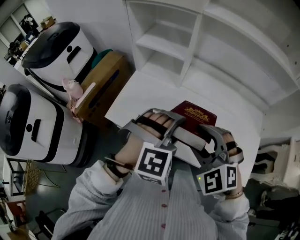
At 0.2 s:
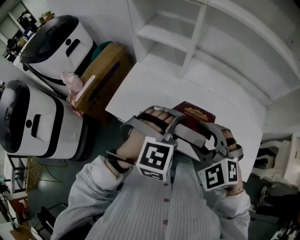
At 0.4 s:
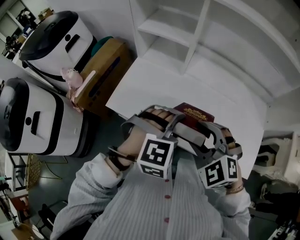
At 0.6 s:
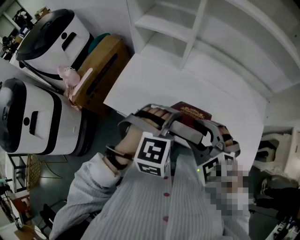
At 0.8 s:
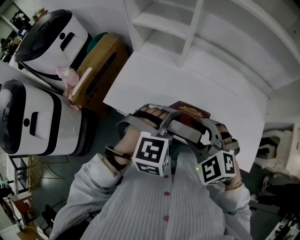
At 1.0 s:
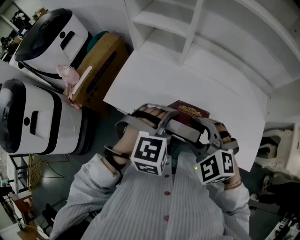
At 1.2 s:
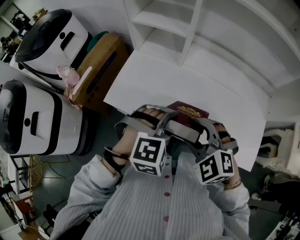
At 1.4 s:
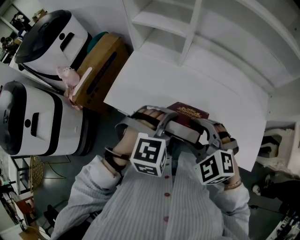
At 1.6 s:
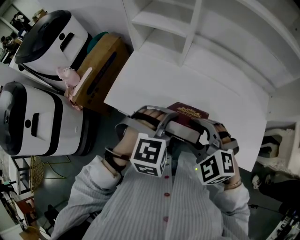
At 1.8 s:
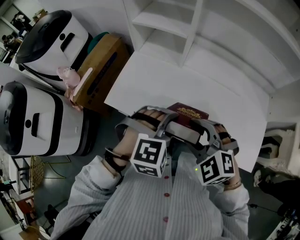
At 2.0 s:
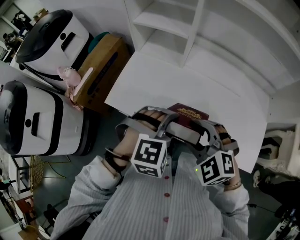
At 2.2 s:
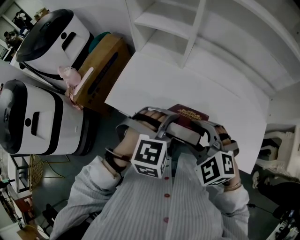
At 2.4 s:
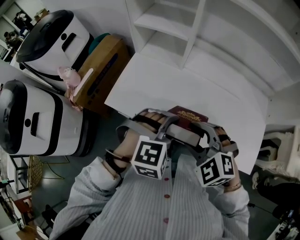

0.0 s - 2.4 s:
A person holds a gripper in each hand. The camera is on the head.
0.0 s - 1.2 s: The two grippers go approximately 5 cm downward.
1.2 s - 2.4 s: Both grippers stay about where they are.

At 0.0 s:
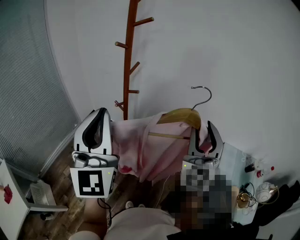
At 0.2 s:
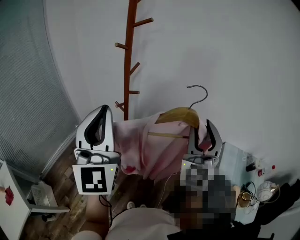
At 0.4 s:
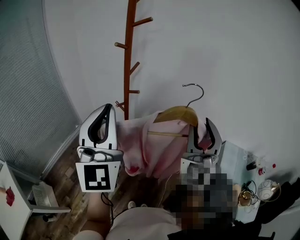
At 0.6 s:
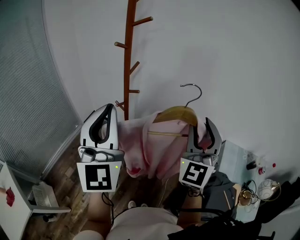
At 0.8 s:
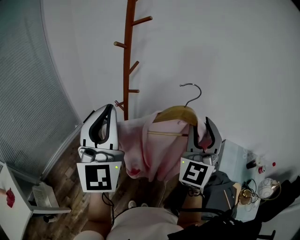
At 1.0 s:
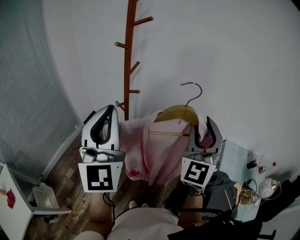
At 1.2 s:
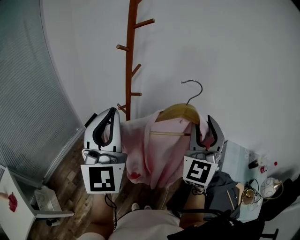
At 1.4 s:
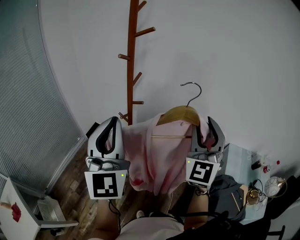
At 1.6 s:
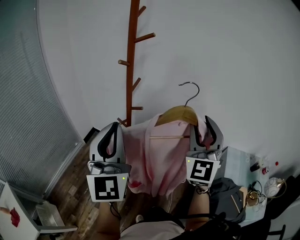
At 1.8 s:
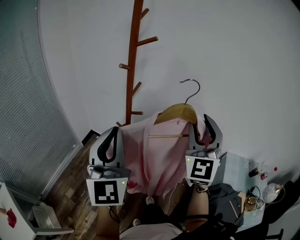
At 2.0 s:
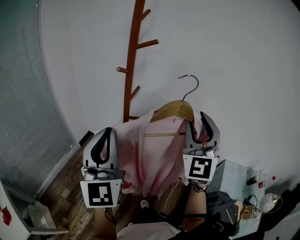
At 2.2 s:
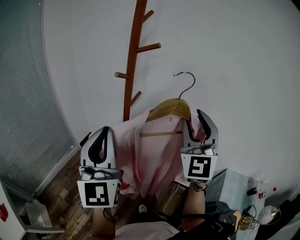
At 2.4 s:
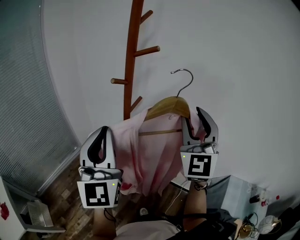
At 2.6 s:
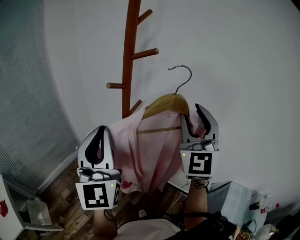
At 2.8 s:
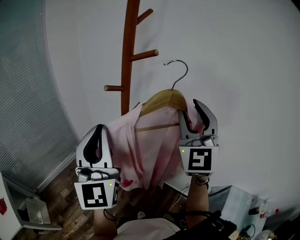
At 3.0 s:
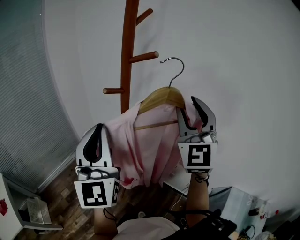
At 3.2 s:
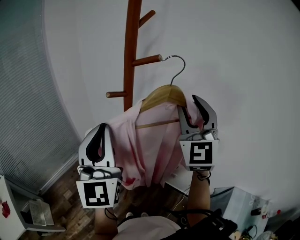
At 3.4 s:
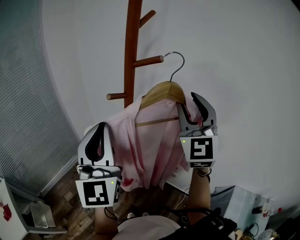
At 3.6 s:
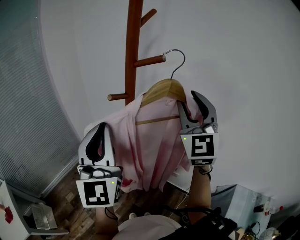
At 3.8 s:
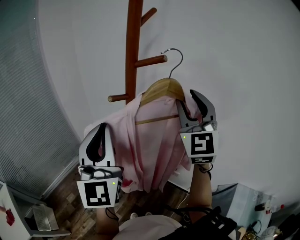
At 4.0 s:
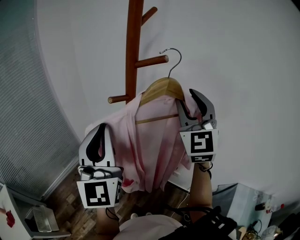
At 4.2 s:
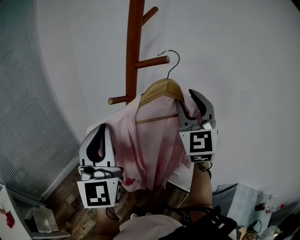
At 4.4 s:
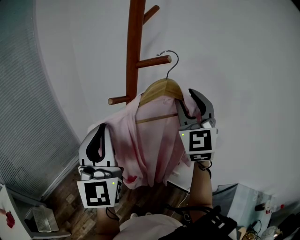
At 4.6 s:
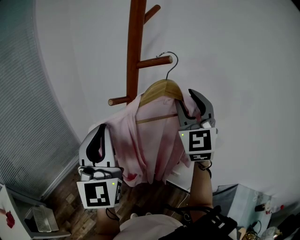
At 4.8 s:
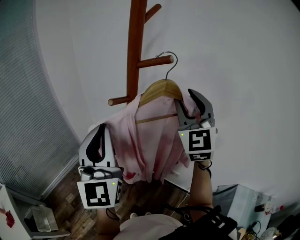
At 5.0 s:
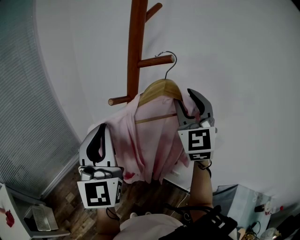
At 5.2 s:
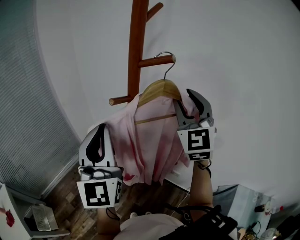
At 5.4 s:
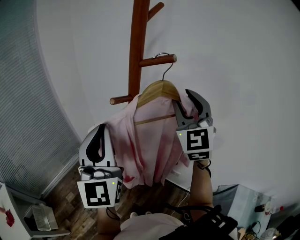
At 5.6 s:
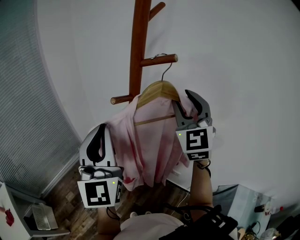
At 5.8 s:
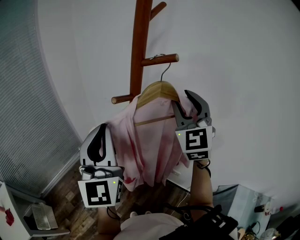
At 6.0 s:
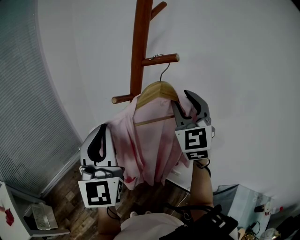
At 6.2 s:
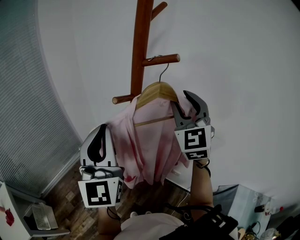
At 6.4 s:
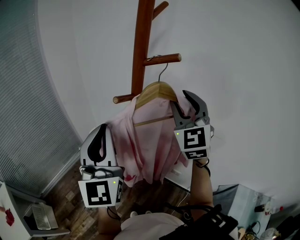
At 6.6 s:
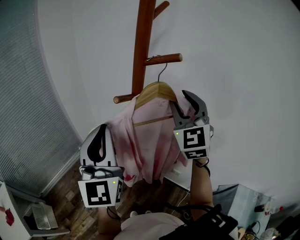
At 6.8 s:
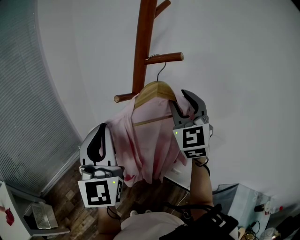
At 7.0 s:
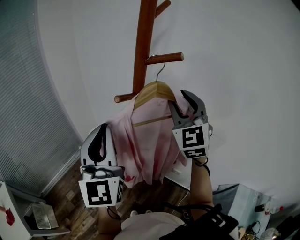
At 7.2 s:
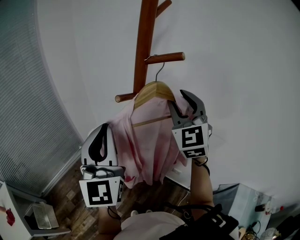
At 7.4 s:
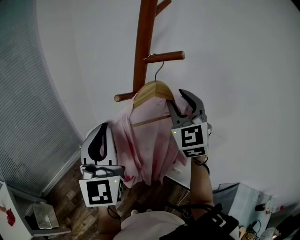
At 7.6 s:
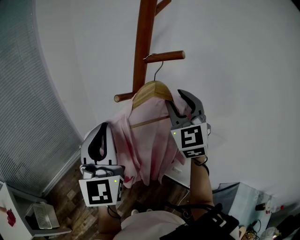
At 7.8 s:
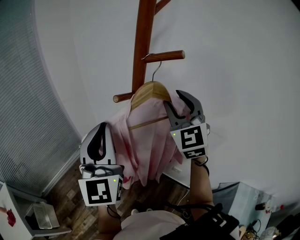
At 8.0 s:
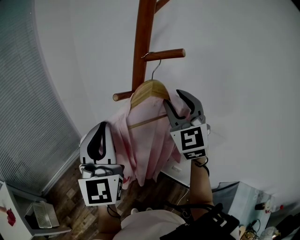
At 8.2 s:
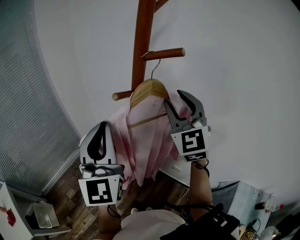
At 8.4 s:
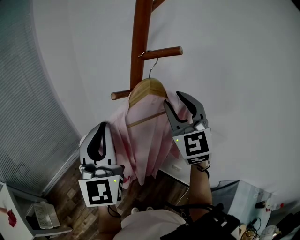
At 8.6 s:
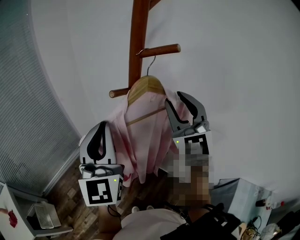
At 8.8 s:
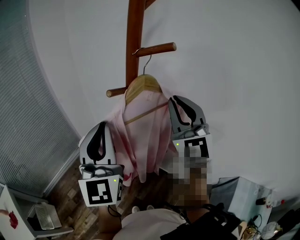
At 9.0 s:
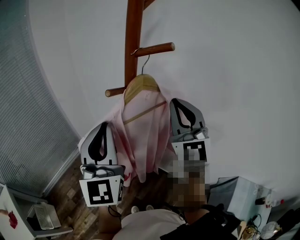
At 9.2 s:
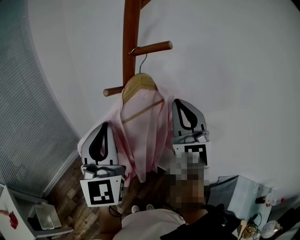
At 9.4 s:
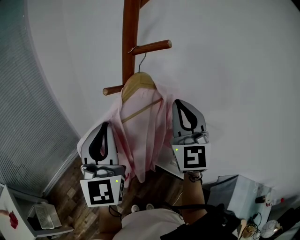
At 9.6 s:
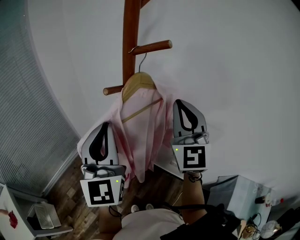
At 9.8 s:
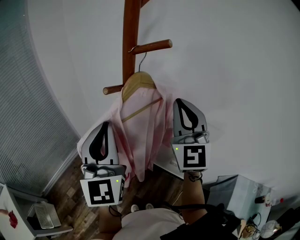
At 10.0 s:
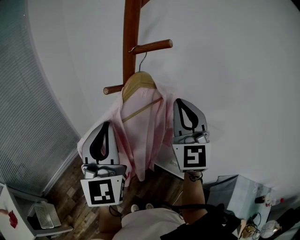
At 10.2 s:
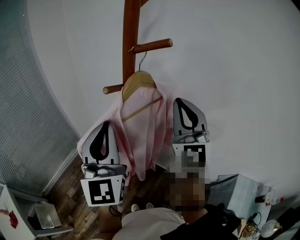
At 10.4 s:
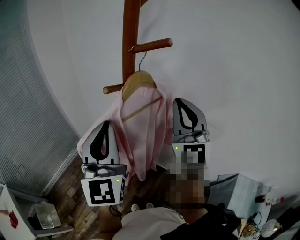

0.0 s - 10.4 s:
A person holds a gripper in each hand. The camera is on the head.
0.0 s - 1.4 s: The grippers stay close to where they were, moving slightly.
1.4 s - 3.0 s: The left gripper travels forward by roughly 15 cm. The right gripper is displaced forward by about 20 cm, and turns by some 20 degrees.
3.0 s - 4.4 s: The right gripper goes roughly 5 cm forward.
4.4 s - 6.0 s: The grippers stay close to where they were, moving slightly.
6.0 s - 7.4 s: The grippers make only small movements.
7.4 s - 9.0 s: The right gripper moves backward, some 5 cm, and closes its fingers.
9.0 s - 10.4 s: There are only small adjustments of the grippers.

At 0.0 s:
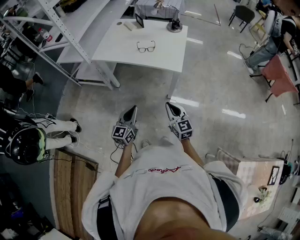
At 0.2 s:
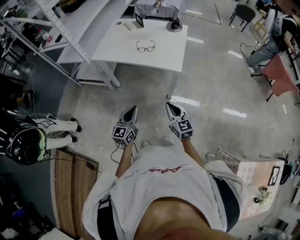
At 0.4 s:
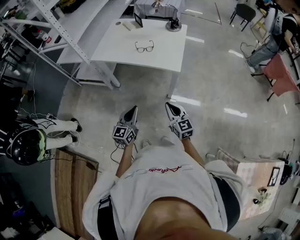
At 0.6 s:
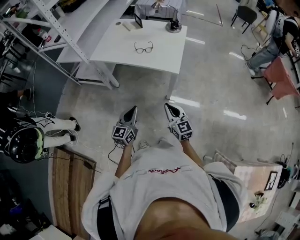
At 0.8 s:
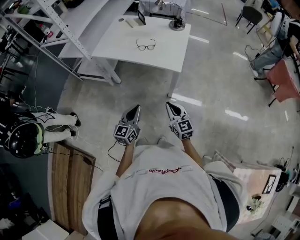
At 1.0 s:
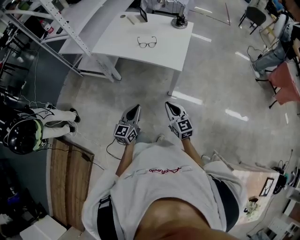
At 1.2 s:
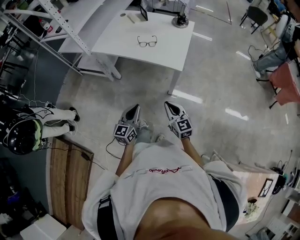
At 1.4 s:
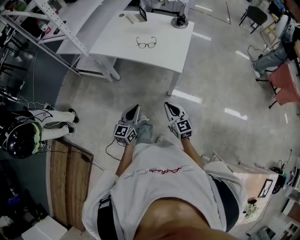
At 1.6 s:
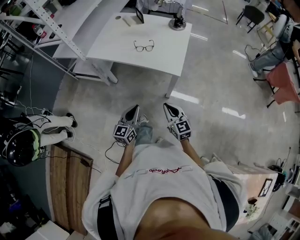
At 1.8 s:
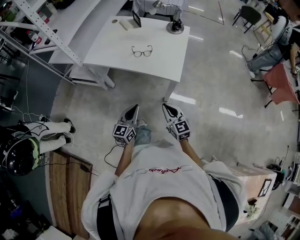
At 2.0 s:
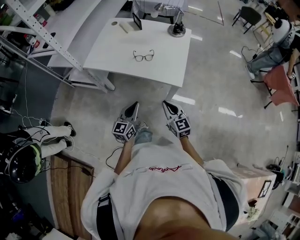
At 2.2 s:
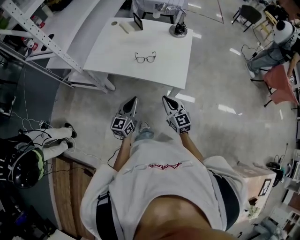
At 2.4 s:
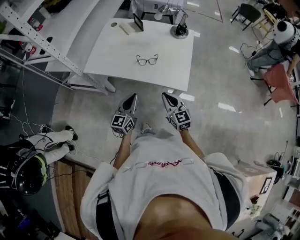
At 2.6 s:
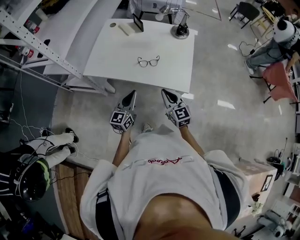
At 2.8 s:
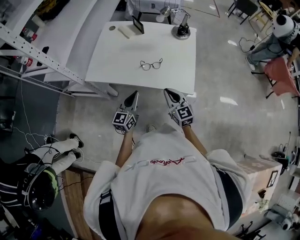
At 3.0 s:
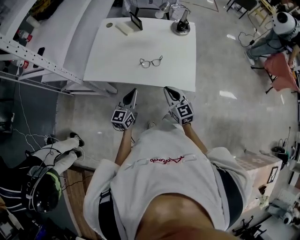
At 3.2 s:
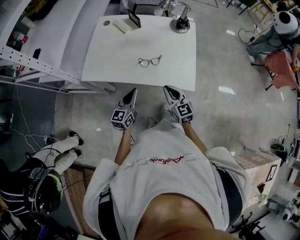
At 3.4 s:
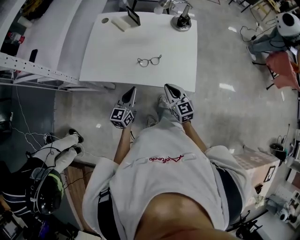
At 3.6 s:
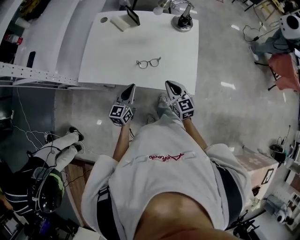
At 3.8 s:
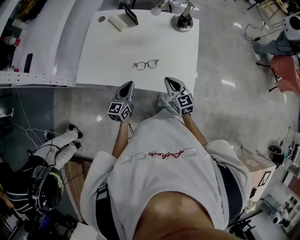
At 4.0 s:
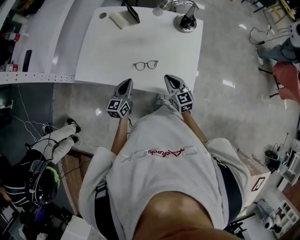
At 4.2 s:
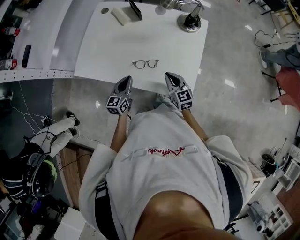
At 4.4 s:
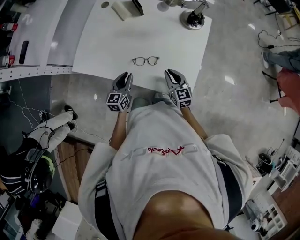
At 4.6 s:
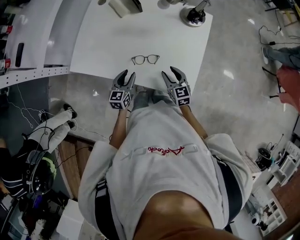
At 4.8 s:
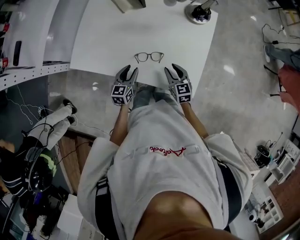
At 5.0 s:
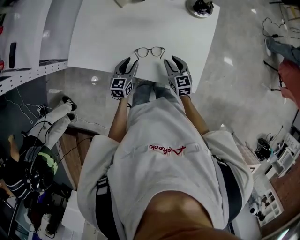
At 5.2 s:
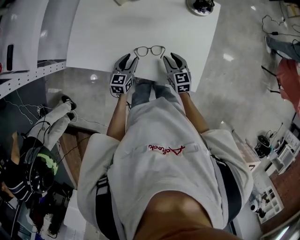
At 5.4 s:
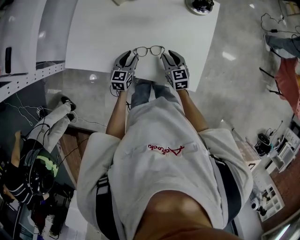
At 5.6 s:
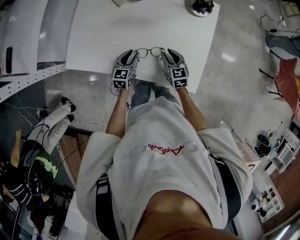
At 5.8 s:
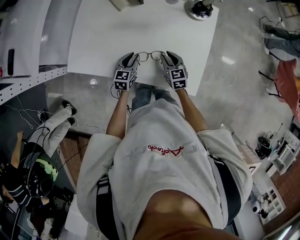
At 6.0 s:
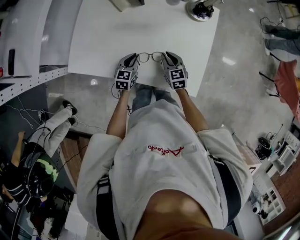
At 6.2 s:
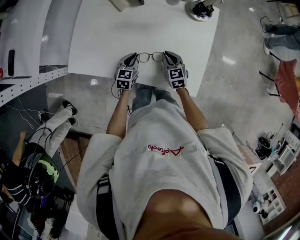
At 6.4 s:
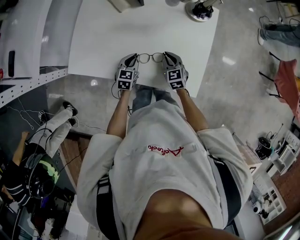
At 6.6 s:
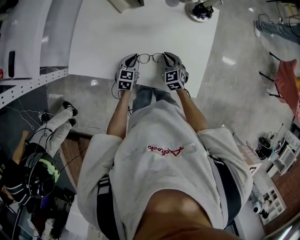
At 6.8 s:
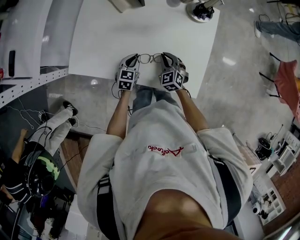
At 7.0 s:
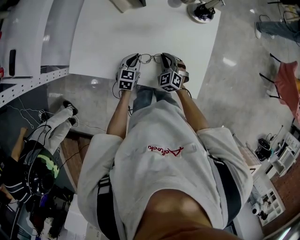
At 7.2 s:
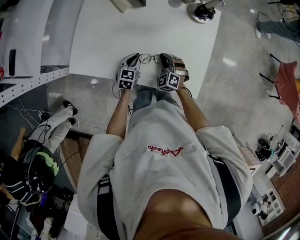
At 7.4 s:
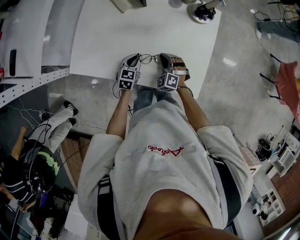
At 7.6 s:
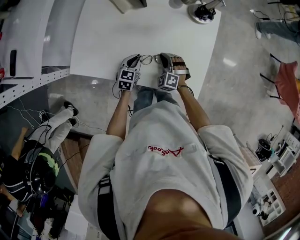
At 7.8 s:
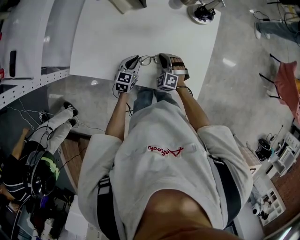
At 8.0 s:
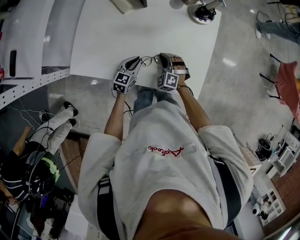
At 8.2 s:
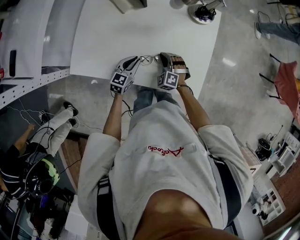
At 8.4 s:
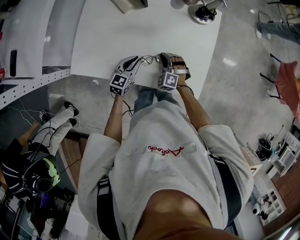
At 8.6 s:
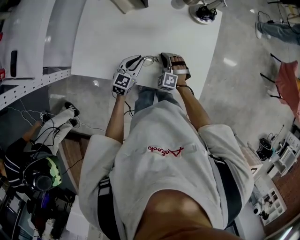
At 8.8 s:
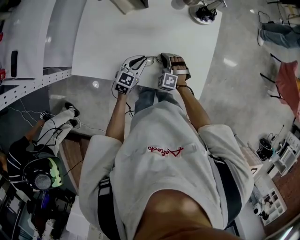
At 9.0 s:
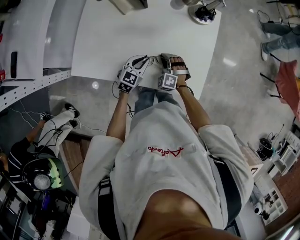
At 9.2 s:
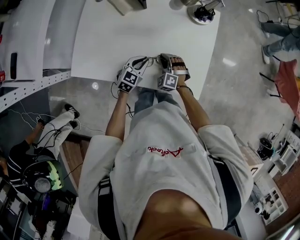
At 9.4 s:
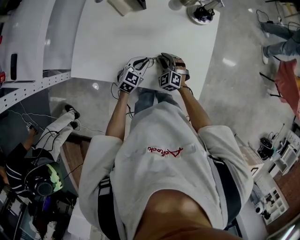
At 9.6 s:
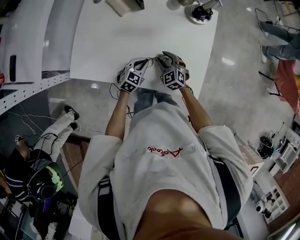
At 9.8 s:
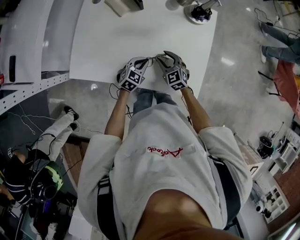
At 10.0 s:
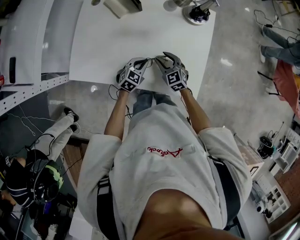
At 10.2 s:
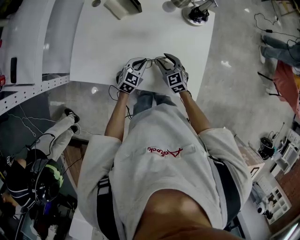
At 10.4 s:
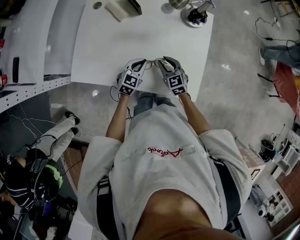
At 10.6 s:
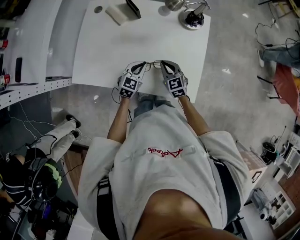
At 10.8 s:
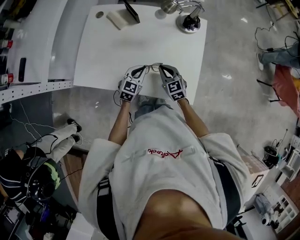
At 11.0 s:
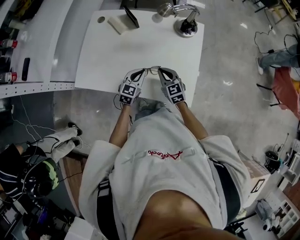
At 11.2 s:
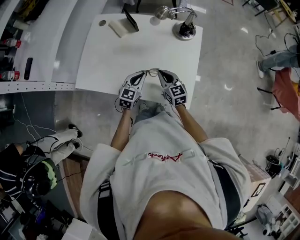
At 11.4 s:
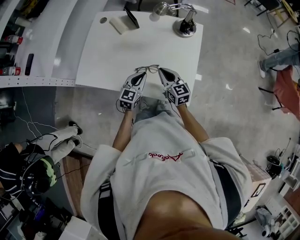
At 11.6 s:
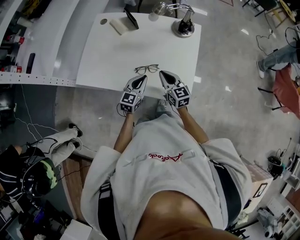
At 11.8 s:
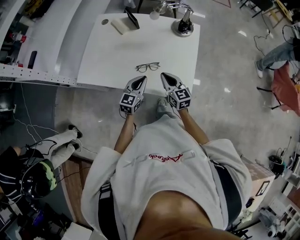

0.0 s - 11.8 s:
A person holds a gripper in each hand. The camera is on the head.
0.0 s - 1.4 s: The left gripper changes place by some 5 cm. Meanwhile the right gripper ends up some 5 cm from where it was.
1.4 s - 3.0 s: The grippers both shift forward by some 30 cm.
3.0 s - 4.4 s: The left gripper goes roughly 15 cm forward and downward, and rotates about 20 degrees. Meanwhile the right gripper moves forward, downward and to the right, about 20 cm.
4.4 s - 6.0 s: The grippers both shift forward and downward by approximately 10 cm. The right gripper opens, then closes once more.
6.0 s - 7.4 s: The right gripper rotates around the line of its fingers by about 50 degrees, counterclockwise from behind.
7.4 s - 8.8 s: There are only small adjustments of the grippers.
8.8 s - 10.4 s: The right gripper is displaced upward by about 5 cm, and rotates around the line of its fingers by about 50 degrees, clockwise from behind.
10.4 s - 11.8 s: The right gripper travels upward and backward by some 15 cm, turns by some 20 degrees, and closes its fingers; the left gripper heads backward and upward, covering roughly 15 cm.
